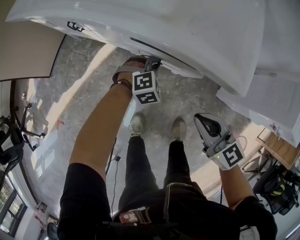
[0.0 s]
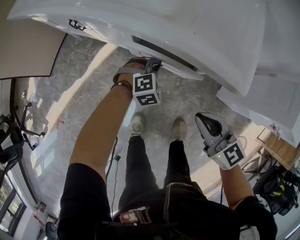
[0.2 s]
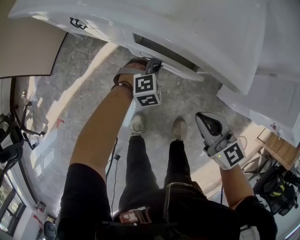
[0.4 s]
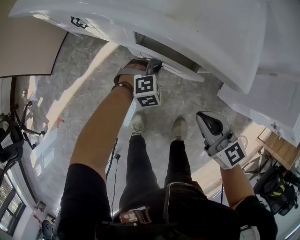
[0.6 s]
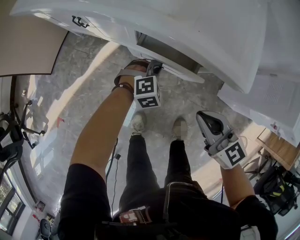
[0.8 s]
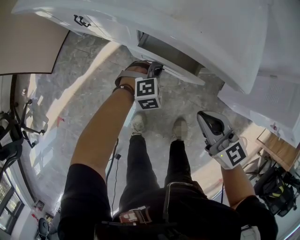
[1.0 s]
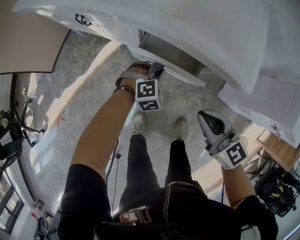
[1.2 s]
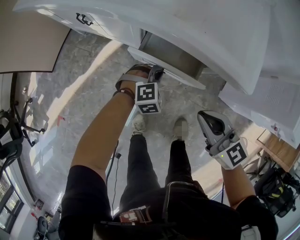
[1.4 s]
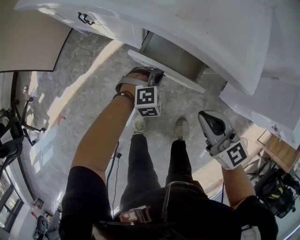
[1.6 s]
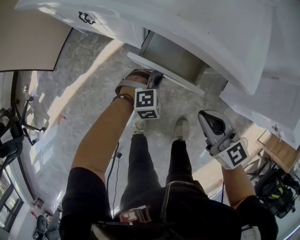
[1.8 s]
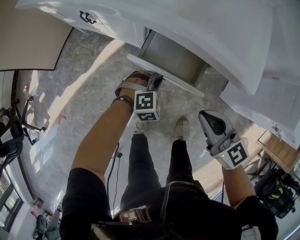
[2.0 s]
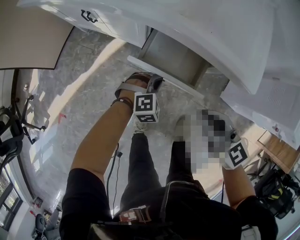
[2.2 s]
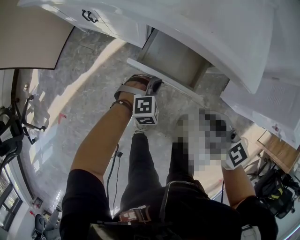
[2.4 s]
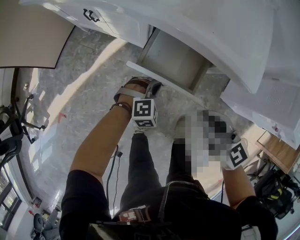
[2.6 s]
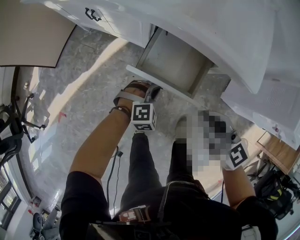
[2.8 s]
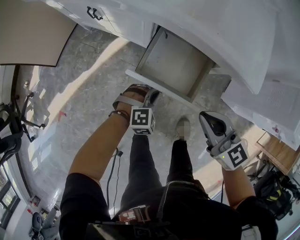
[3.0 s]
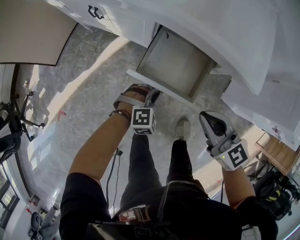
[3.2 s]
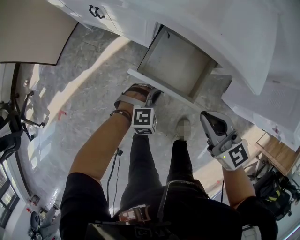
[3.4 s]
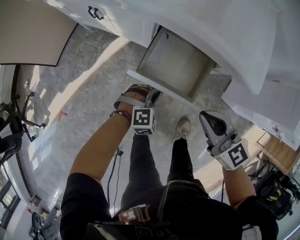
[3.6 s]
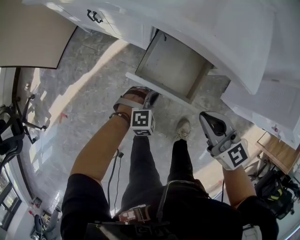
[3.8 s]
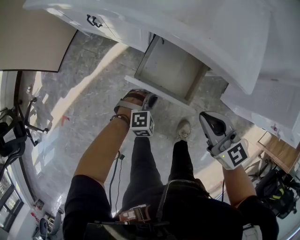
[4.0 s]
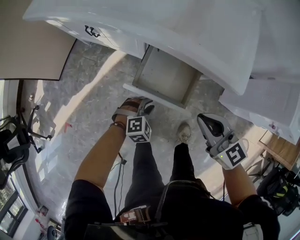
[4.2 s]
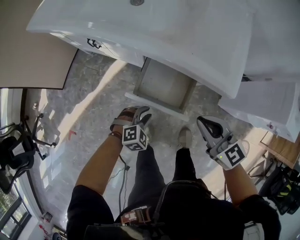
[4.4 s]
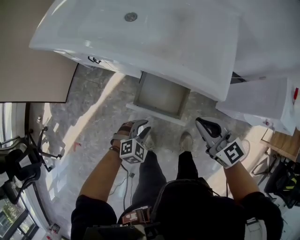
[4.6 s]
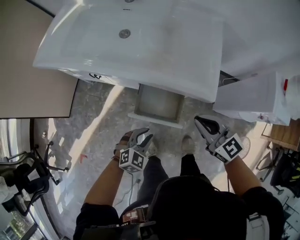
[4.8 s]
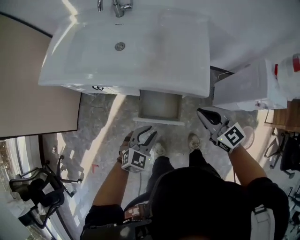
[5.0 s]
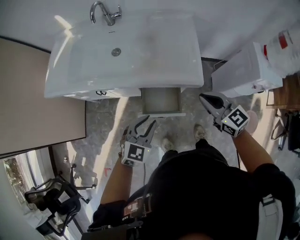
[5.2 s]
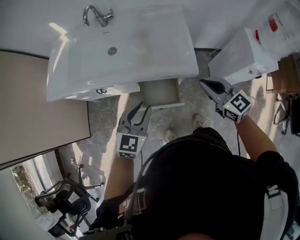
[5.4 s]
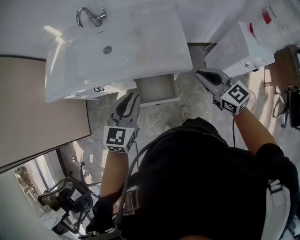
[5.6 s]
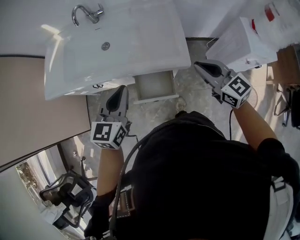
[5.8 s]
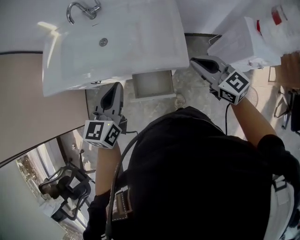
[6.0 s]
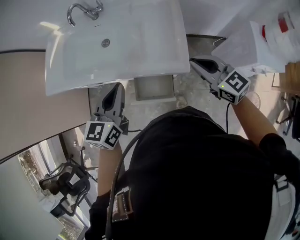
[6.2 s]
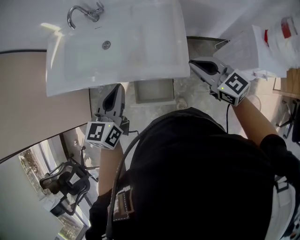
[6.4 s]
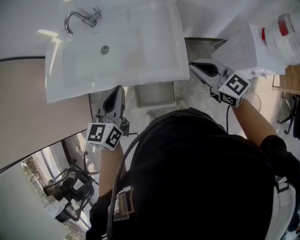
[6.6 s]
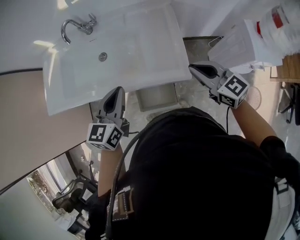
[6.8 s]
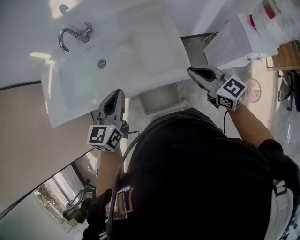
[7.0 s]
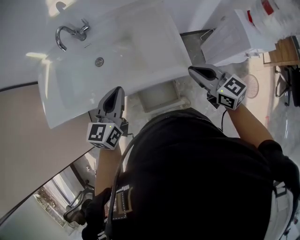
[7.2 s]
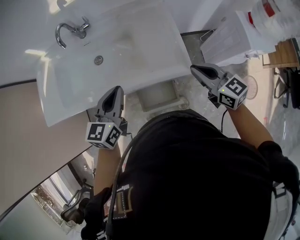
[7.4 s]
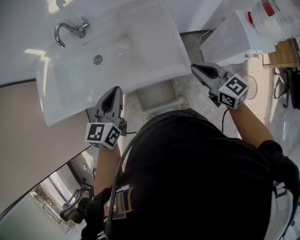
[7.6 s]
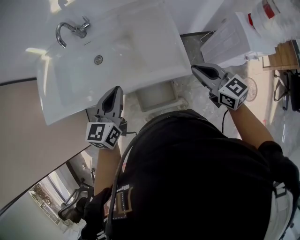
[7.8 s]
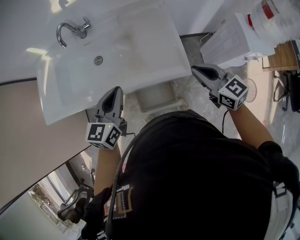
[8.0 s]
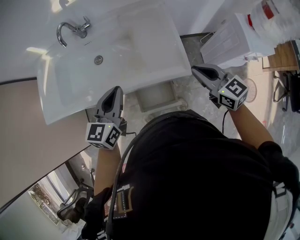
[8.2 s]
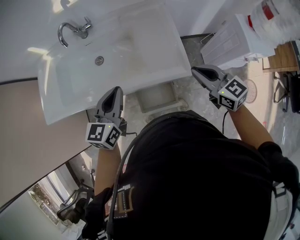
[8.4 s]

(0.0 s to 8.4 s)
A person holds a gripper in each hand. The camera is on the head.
0.0 s - 1.4 s: The left gripper is displaced backward by some 5 cm.
1.4 s - 2.8 s: The left gripper shifts some 10 cm backward.
2.8 s - 4.2 s: The grippers move only a little.
4.2 s - 5.6 s: The left gripper heads upward, covering approximately 50 cm, and points its fingers about 40 degrees further upward; the right gripper is displaced upward by roughly 25 cm, and changes its angle by some 20 degrees.
5.6 s - 7.0 s: The right gripper shifts some 10 cm forward. The left gripper travels forward by roughly 15 cm.
7.0 s - 8.4 s: The grippers move only a little.

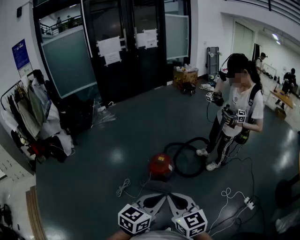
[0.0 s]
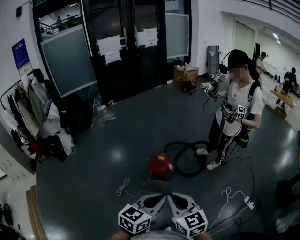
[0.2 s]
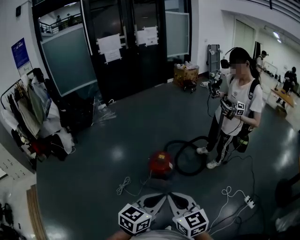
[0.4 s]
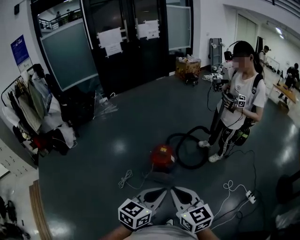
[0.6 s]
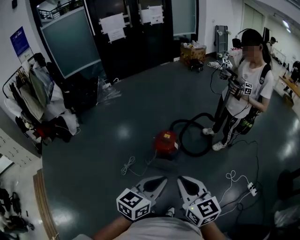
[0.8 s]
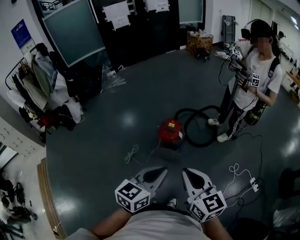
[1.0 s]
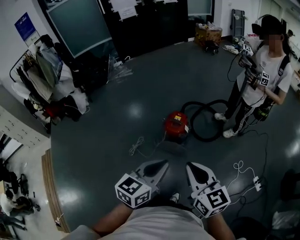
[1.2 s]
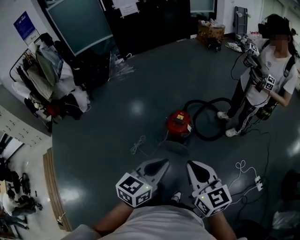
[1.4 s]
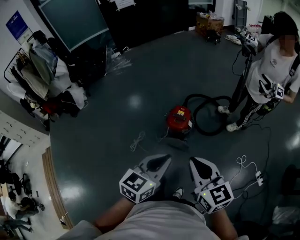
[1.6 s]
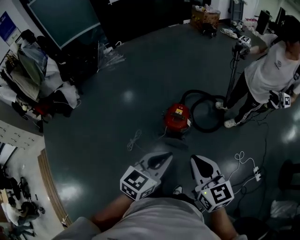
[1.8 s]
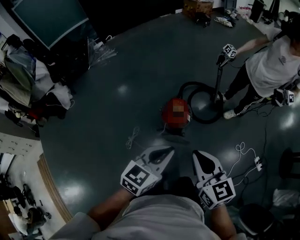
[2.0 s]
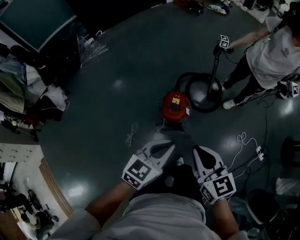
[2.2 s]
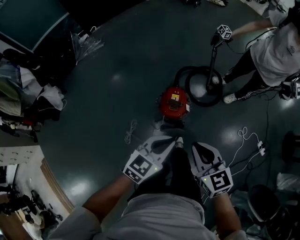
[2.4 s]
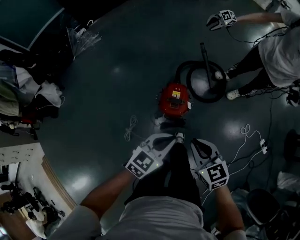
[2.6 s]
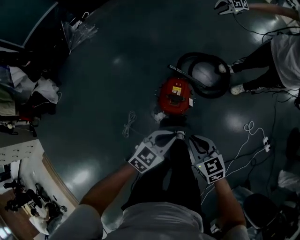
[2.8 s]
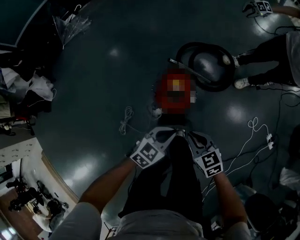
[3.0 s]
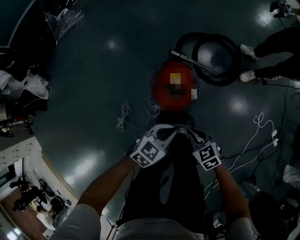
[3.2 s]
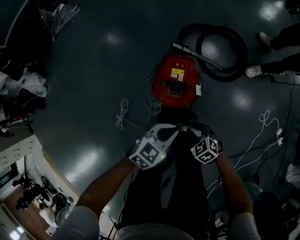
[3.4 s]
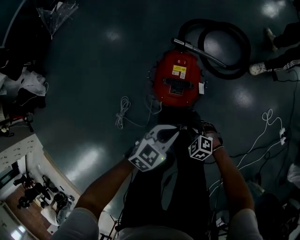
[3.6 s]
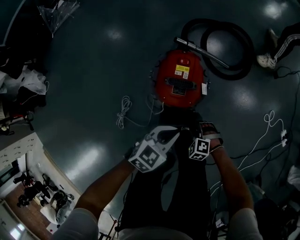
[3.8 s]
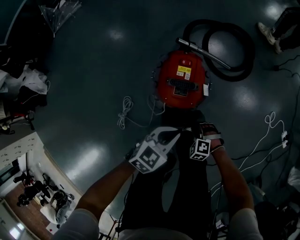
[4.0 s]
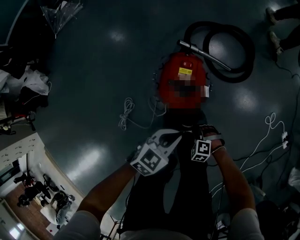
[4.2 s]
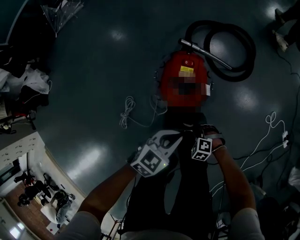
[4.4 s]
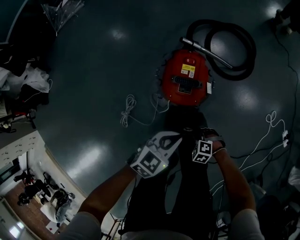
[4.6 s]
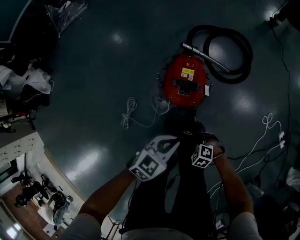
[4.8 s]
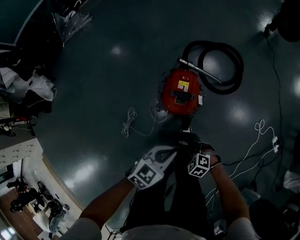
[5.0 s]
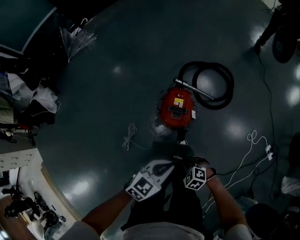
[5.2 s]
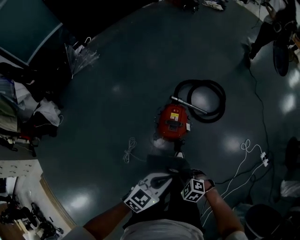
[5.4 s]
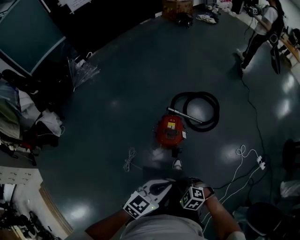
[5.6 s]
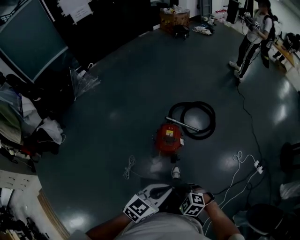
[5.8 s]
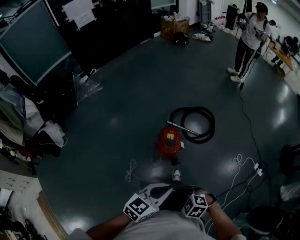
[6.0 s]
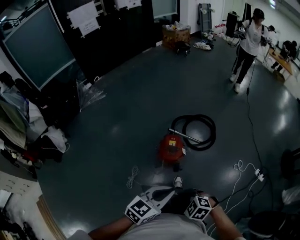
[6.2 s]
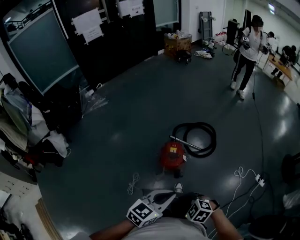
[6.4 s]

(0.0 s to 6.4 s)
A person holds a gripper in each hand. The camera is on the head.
0.0 s - 1.6 s: The right gripper moves forward, approximately 10 cm. The left gripper travels forward and to the left by some 10 cm.
1.6 s - 3.2 s: Both grippers move downward and forward, roughly 60 cm. The left gripper turns by about 40 degrees. The right gripper points its fingers approximately 30 degrees further downward.
3.2 s - 4.8 s: The right gripper heads downward, covering approximately 15 cm, rotates approximately 40 degrees, and opens and closes again, while the left gripper ends up some 5 cm from where it was.
4.8 s - 6.4 s: Both grippers travel together upward, roughly 50 cm.

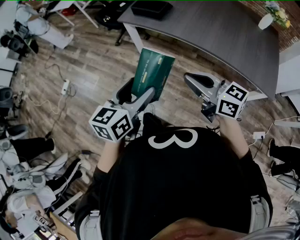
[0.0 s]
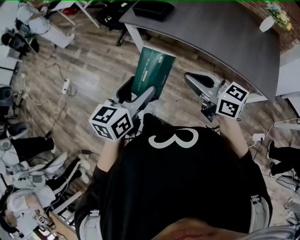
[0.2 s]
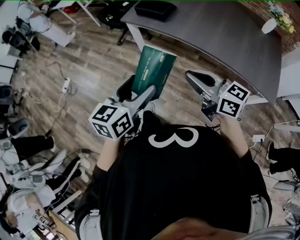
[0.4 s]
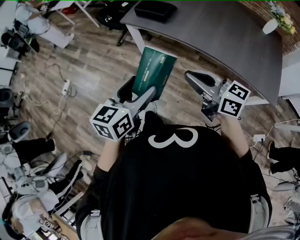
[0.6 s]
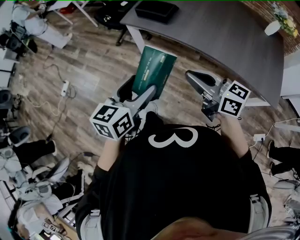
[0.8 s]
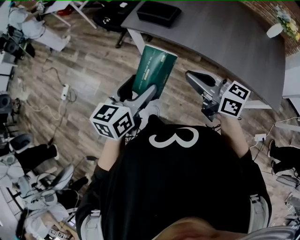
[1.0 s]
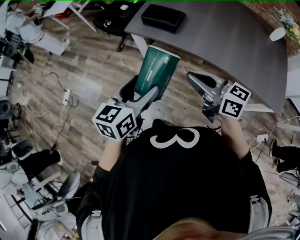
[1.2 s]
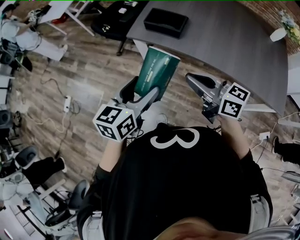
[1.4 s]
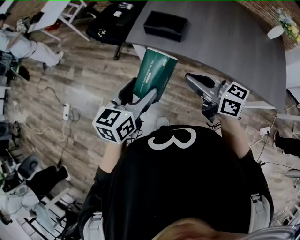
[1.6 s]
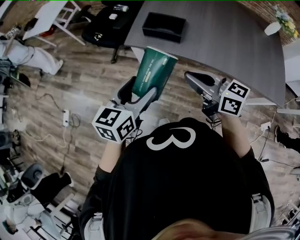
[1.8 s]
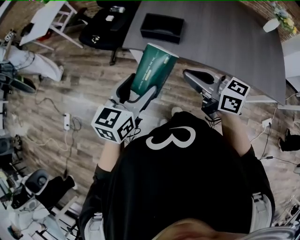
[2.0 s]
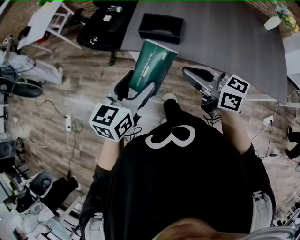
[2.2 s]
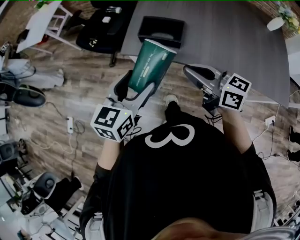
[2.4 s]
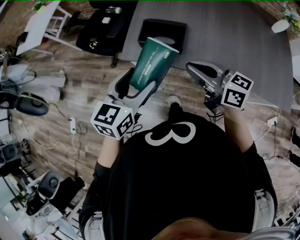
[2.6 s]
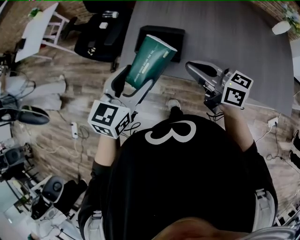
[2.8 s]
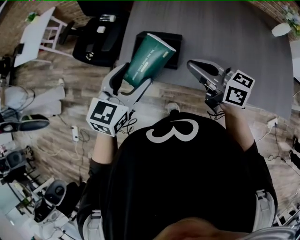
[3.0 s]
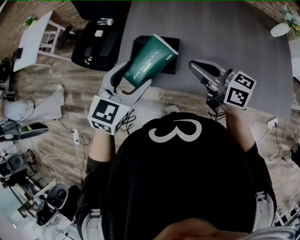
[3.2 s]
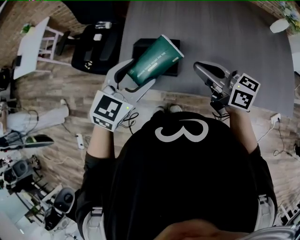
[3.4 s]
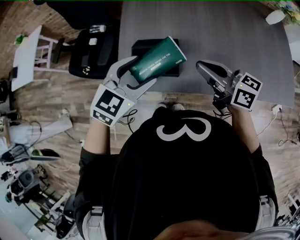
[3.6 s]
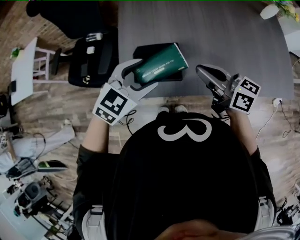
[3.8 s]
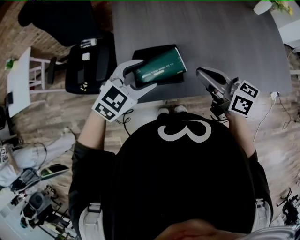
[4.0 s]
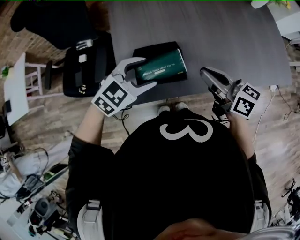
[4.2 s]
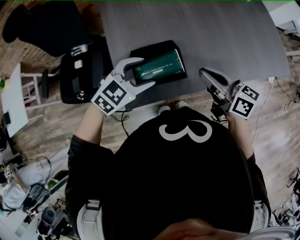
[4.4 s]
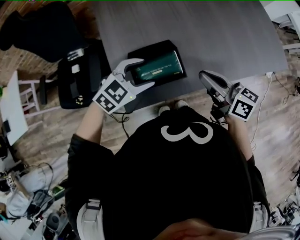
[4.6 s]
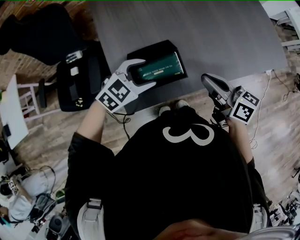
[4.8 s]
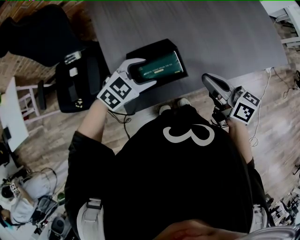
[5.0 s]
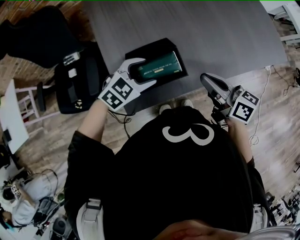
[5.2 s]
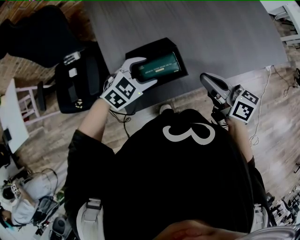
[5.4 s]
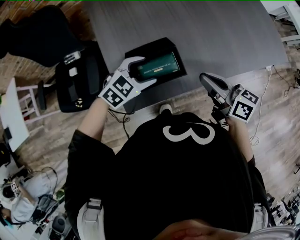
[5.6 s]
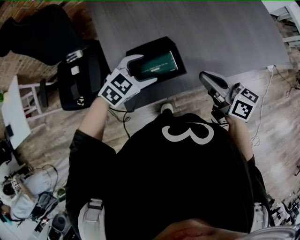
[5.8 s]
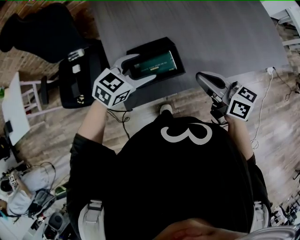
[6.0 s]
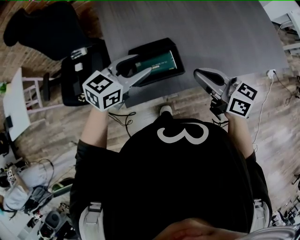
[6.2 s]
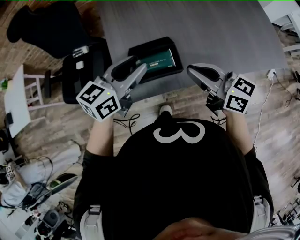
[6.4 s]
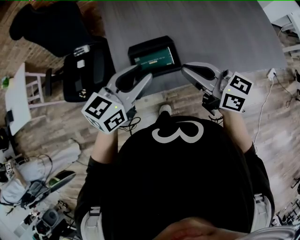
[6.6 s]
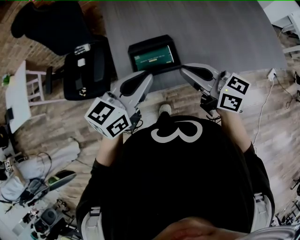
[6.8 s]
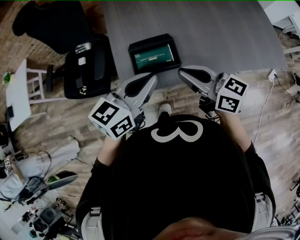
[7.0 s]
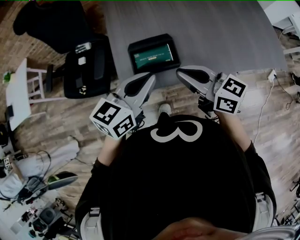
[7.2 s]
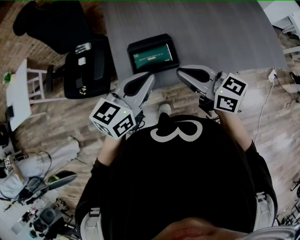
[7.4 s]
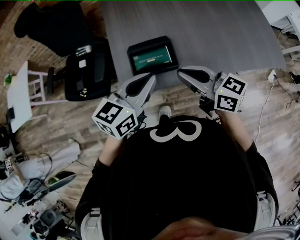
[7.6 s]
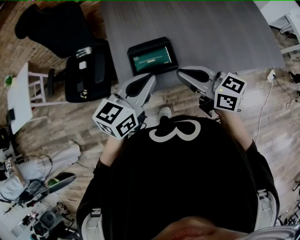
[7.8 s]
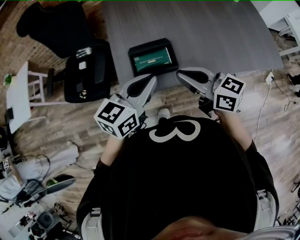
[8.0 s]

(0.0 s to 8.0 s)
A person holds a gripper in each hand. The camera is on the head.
0.0 s - 1.6 s: The two grippers go about 30 cm forward and to the left.
1.6 s - 3.2 s: Both grippers travel together forward, some 25 cm. The left gripper swivels approximately 30 degrees.
3.2 s - 4.8 s: The left gripper moves downward, roughly 15 cm, and changes its angle by approximately 50 degrees. Meanwhile the right gripper moves downward, some 5 cm, and changes its angle by about 40 degrees.
4.8 s - 6.4 s: The right gripper travels upward by some 5 cm. Meanwhile the left gripper goes approximately 15 cm upward, swivels some 40 degrees, and closes its fingers.
6.4 s - 8.0 s: The left gripper is displaced backward by roughly 10 cm, and closes its fingers.

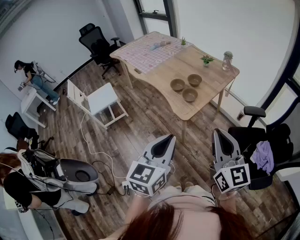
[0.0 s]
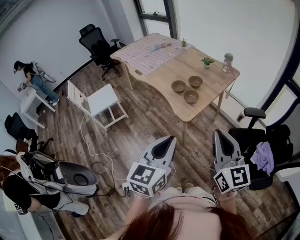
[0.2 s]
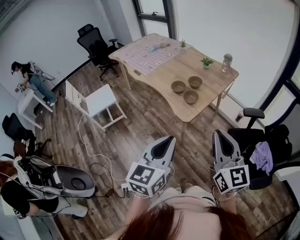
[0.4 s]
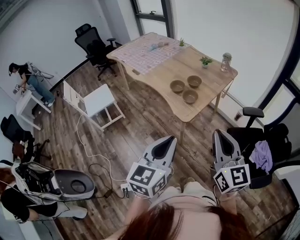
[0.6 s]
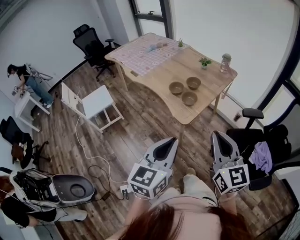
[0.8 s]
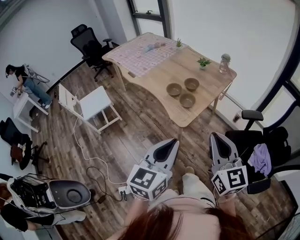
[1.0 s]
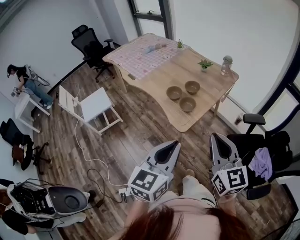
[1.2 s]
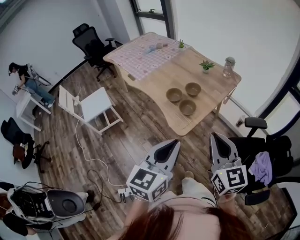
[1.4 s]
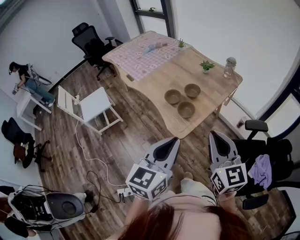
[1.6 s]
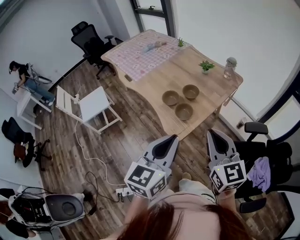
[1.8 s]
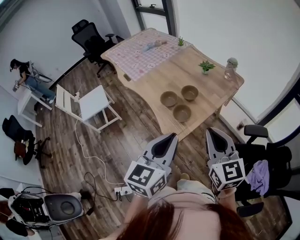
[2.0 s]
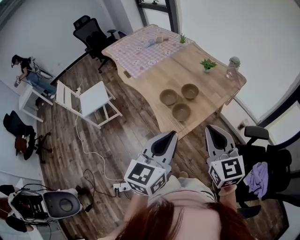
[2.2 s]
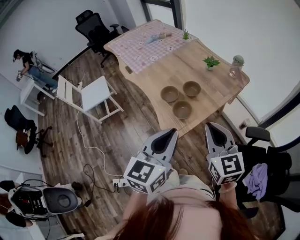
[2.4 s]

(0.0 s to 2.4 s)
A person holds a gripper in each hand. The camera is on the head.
0.0 s - 1.2 s: The two grippers go roughly 10 cm forward.
1.2 s - 2.4 s: The right gripper goes approximately 20 cm forward. Meanwhile the left gripper is displaced forward and to the right by some 15 cm.
